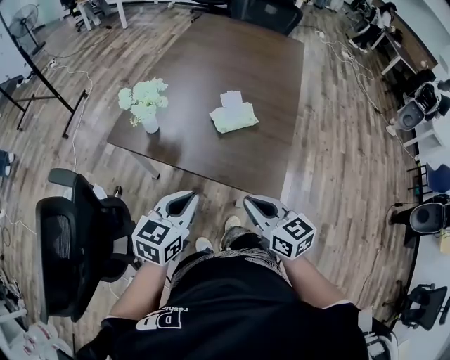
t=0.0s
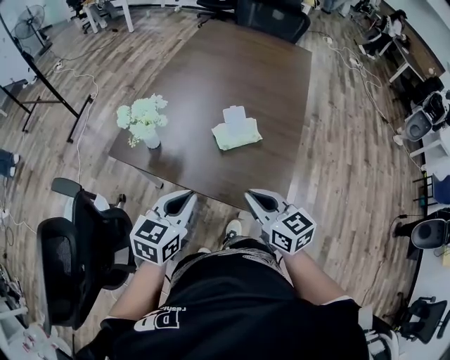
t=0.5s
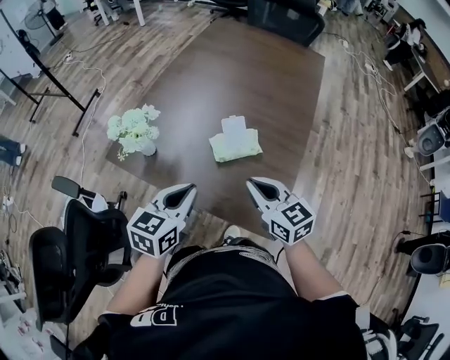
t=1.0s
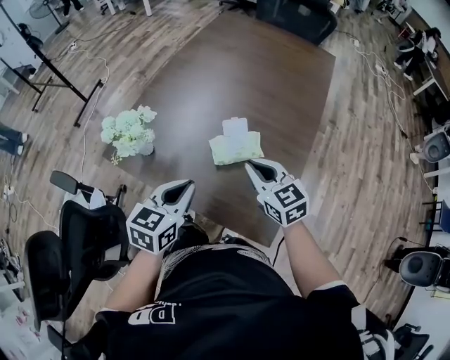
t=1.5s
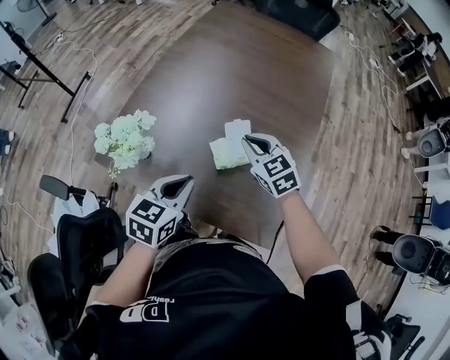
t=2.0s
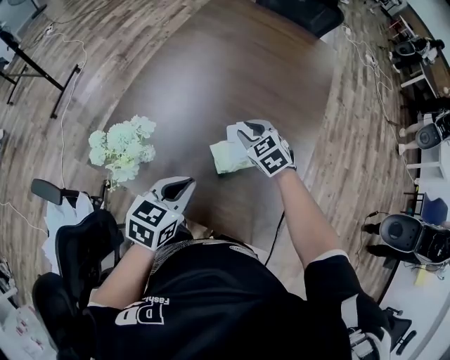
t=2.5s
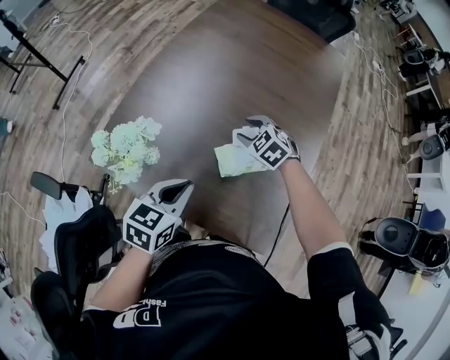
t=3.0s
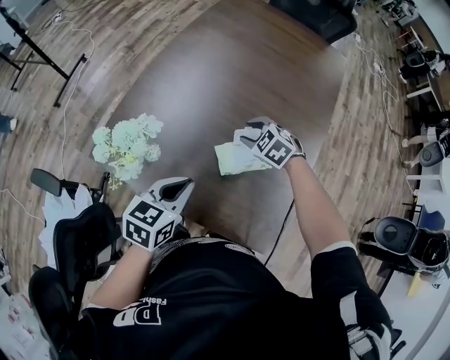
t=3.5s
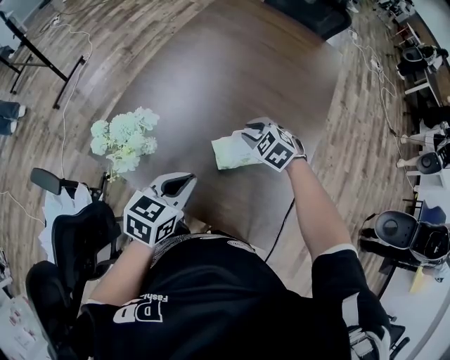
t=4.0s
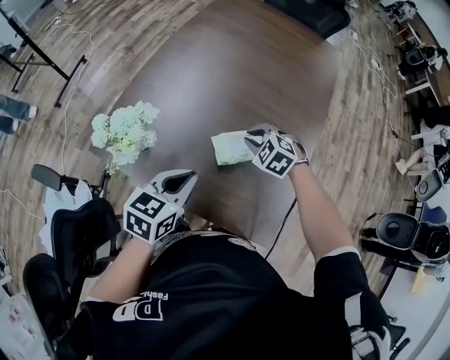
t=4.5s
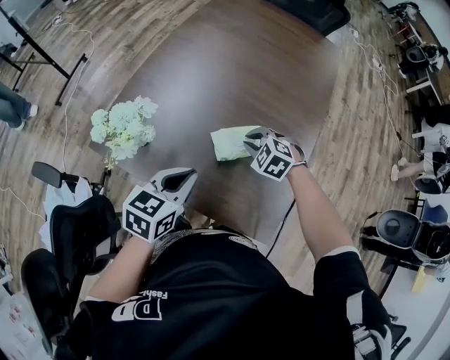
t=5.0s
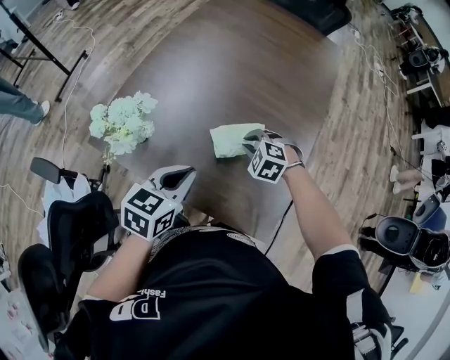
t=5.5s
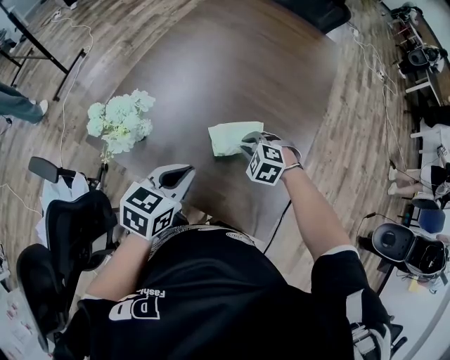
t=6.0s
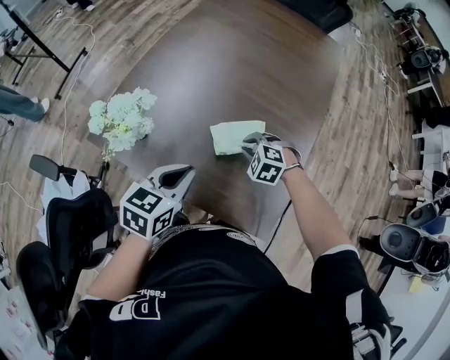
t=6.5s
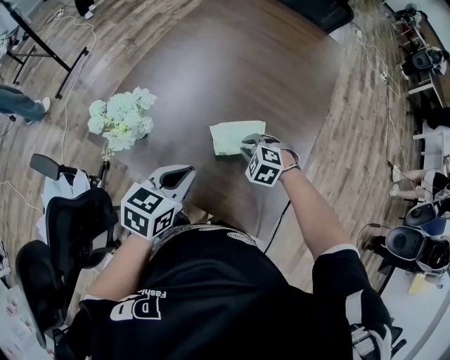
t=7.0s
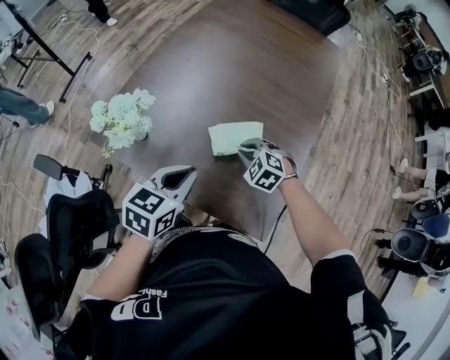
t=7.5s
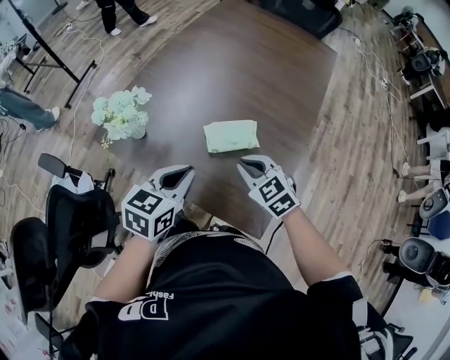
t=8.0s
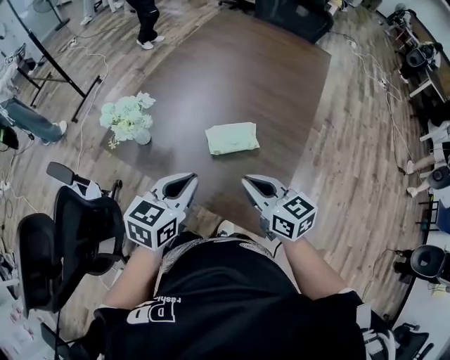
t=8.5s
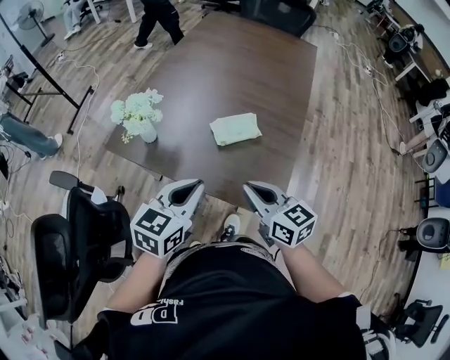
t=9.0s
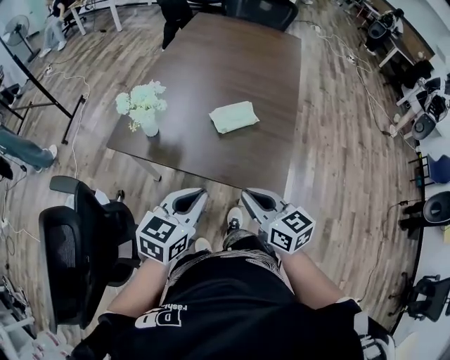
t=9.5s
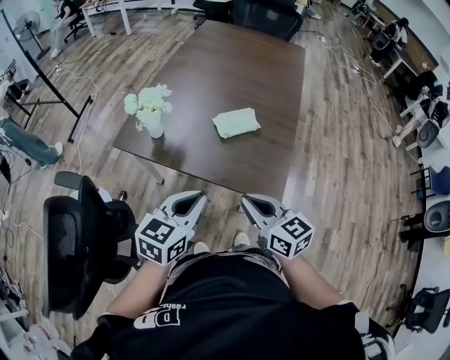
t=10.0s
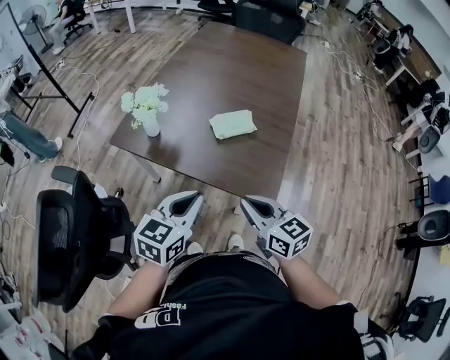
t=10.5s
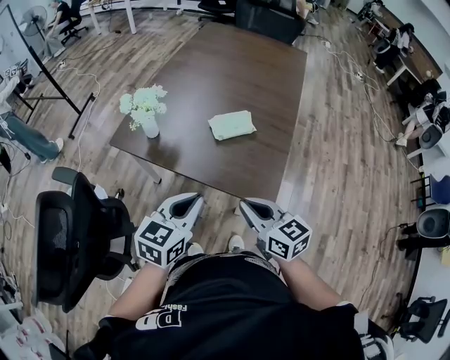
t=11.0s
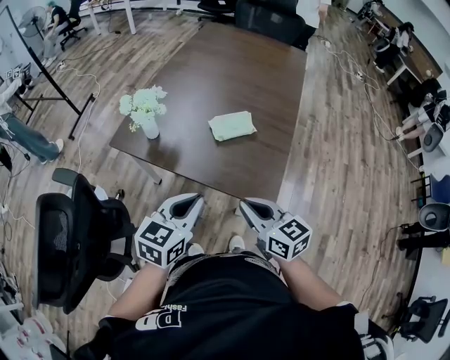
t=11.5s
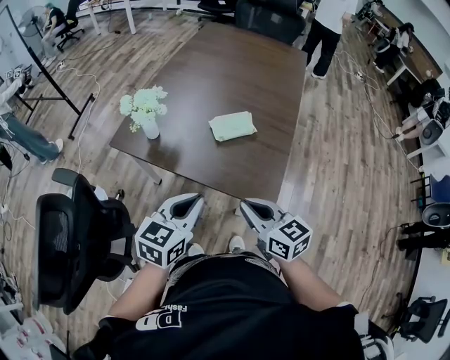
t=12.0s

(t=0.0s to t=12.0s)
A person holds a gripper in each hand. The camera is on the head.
t=0.0s - t=2.0s: The left gripper shifts roughly 25 cm forward; the right gripper is displaced forward by about 35 cm, and rotates about 30 degrees.
t=2.0s - t=4.0s: The right gripper moves downward and forward, some 10 cm, rotates approximately 30 degrees, and opens its fingers.
t=4.0s - t=6.0s: The right gripper is displaced backward by about 10 cm.
t=6.0s - t=8.0s: The right gripper shifts about 15 cm upward and backward, and changes its angle by approximately 40 degrees; the left gripper ends up about 5 cm from where it was.
t=8.0s - t=10.0s: Both grippers travel together backward, some 20 cm. The right gripper turns by about 40 degrees.
t=10.0s - t=12.0s: The grippers move only a little.

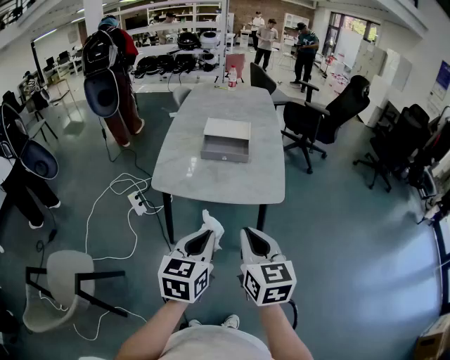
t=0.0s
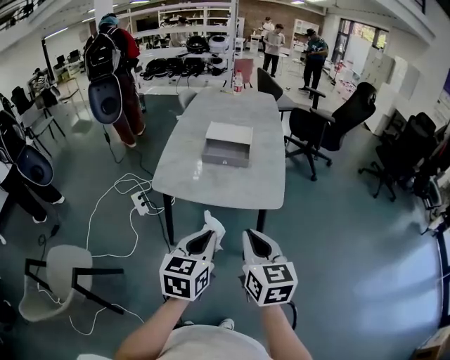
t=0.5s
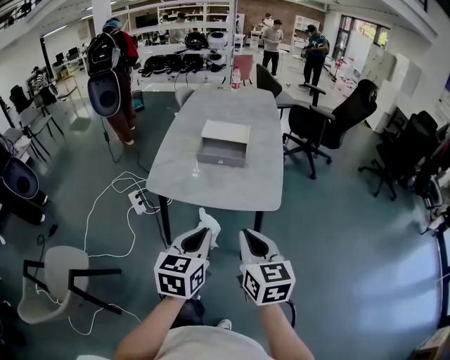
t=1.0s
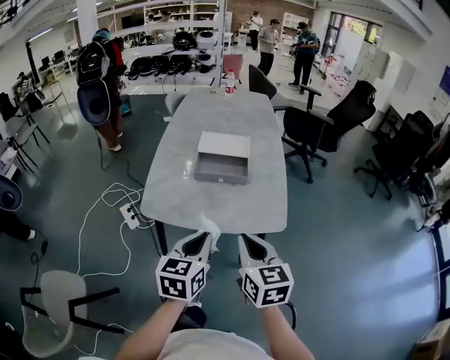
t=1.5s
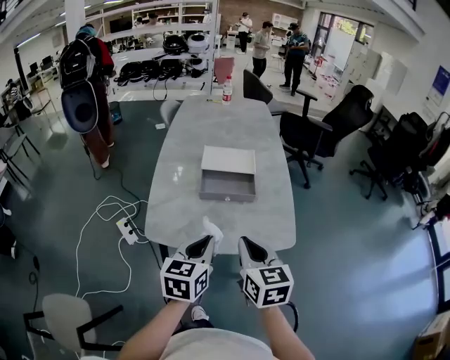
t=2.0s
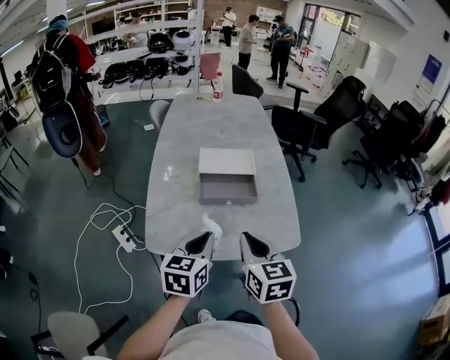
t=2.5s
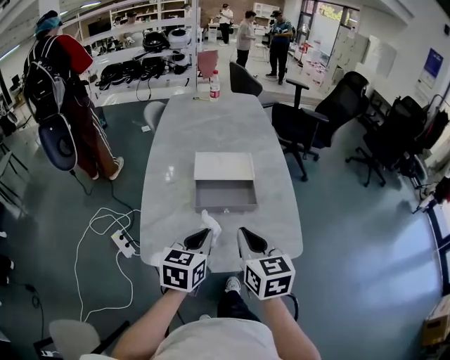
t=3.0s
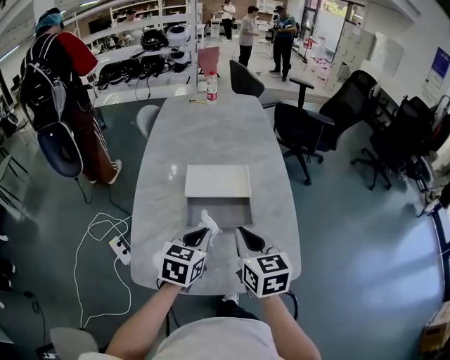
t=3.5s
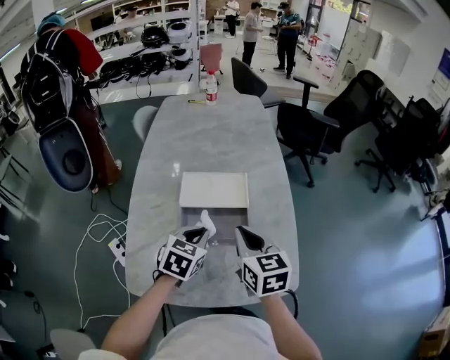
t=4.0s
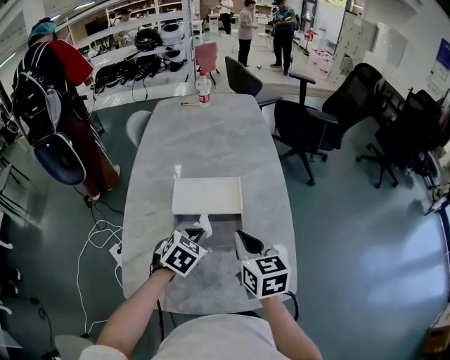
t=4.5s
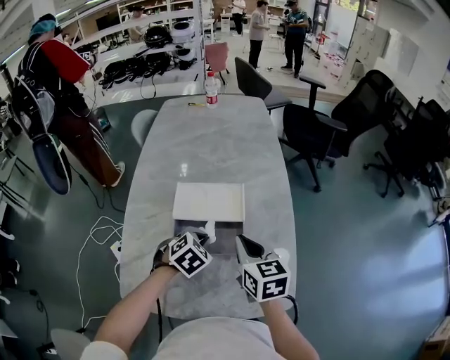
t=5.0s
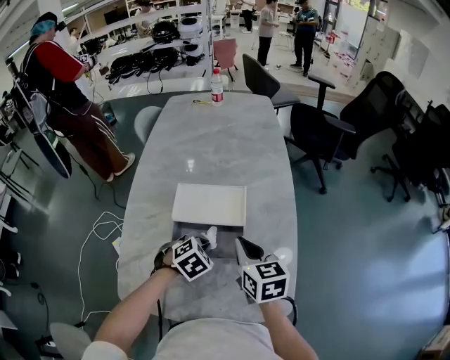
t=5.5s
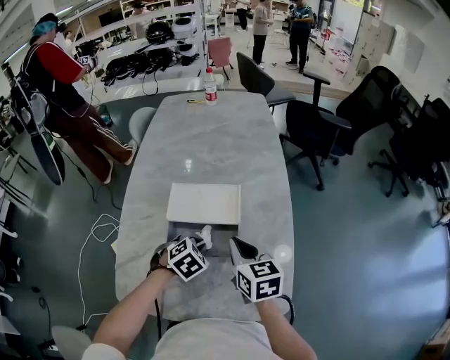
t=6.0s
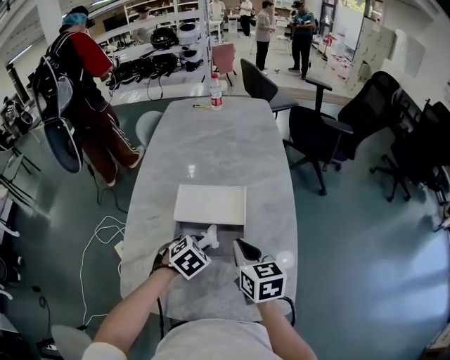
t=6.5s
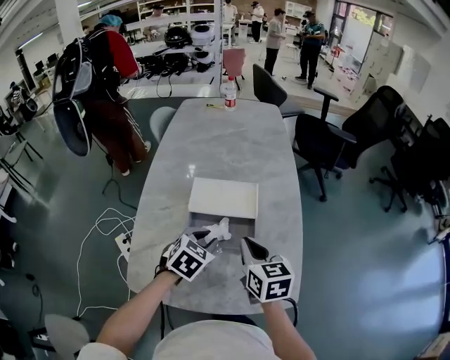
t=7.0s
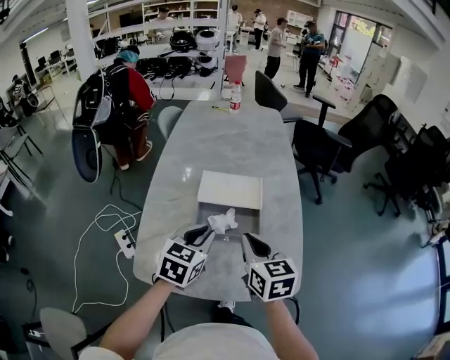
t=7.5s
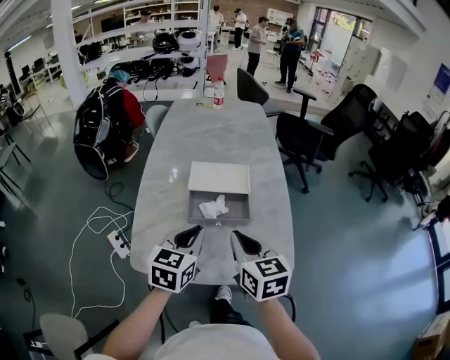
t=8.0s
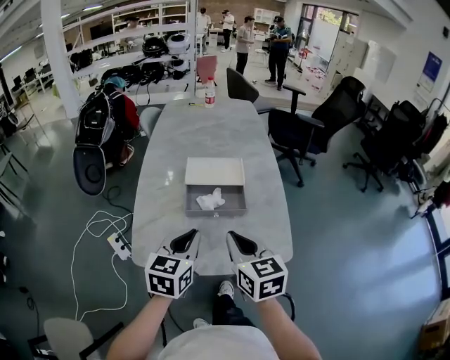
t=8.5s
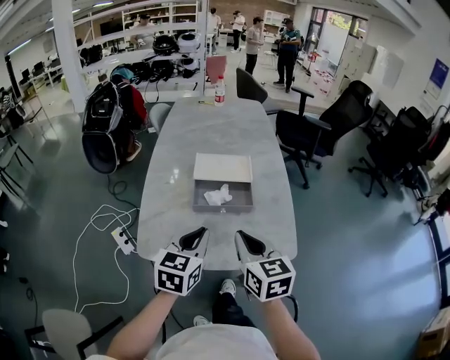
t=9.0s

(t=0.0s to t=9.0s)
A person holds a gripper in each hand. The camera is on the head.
t=0.0s - t=2.0s: Both grippers move forward, approximately 20 cm.
t=2.0s - t=4.5s: The two grippers go about 30 cm forward. The left gripper swivels approximately 40 degrees.
t=4.5s - t=7.0s: The left gripper goes downward and returns, some 5 cm each way.
t=7.0s - t=9.0s: The left gripper heads backward and upward, covering about 20 cm, and changes its angle by roughly 30 degrees. The right gripper is displaced backward by roughly 20 cm.

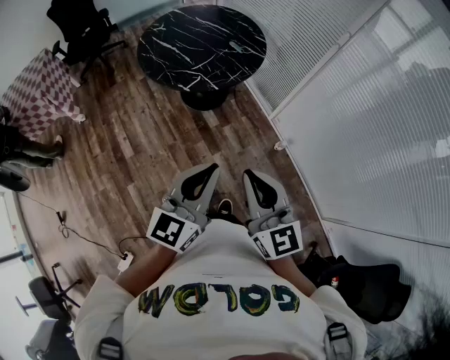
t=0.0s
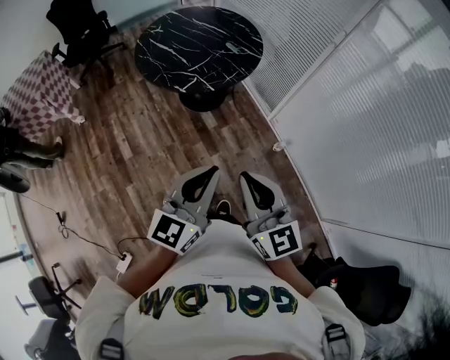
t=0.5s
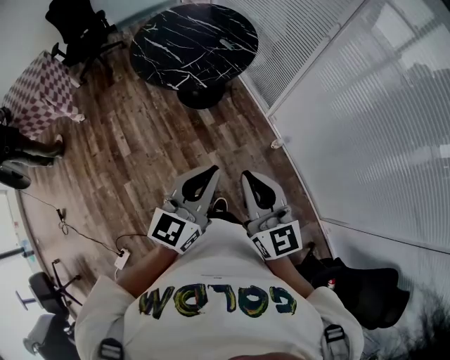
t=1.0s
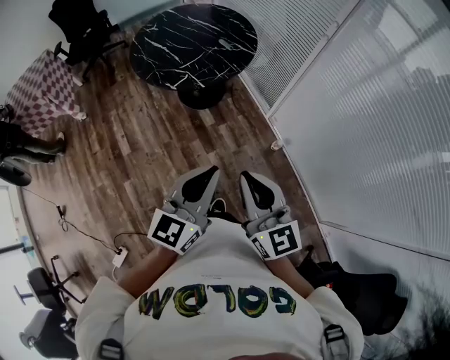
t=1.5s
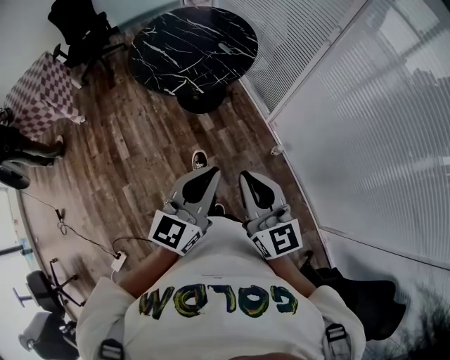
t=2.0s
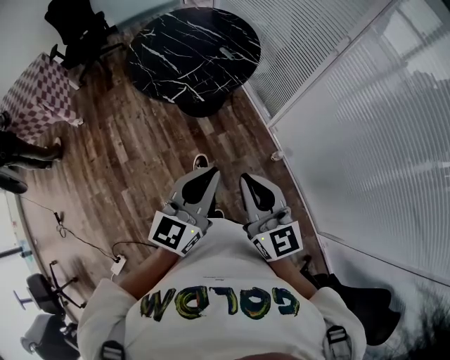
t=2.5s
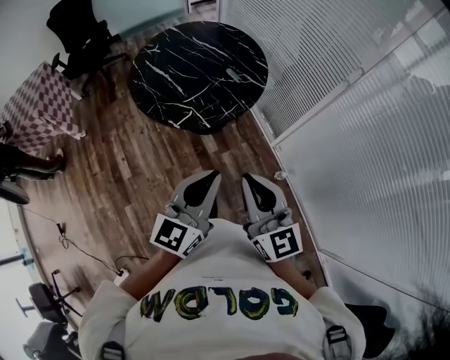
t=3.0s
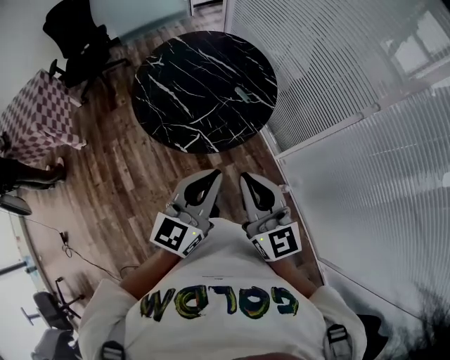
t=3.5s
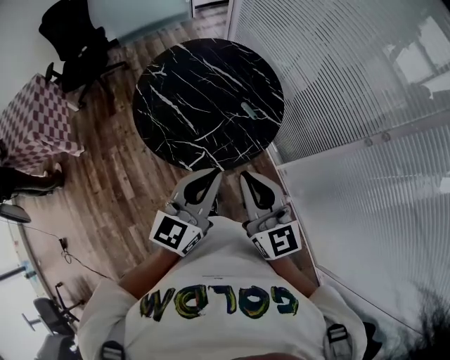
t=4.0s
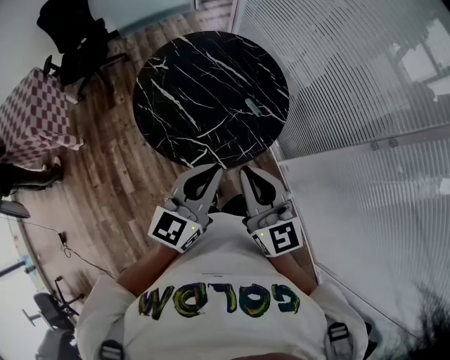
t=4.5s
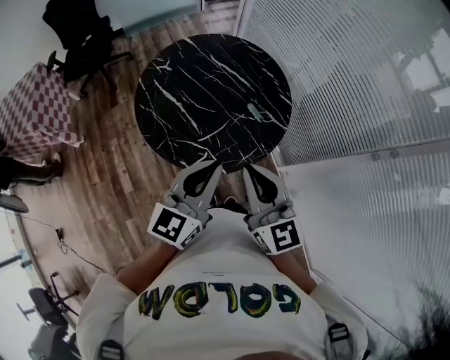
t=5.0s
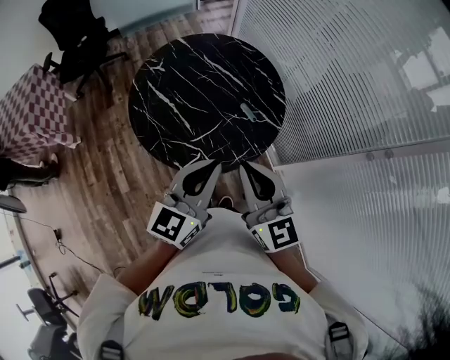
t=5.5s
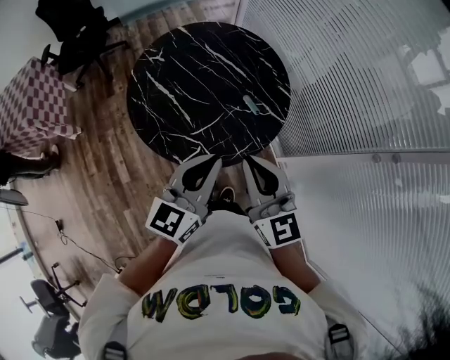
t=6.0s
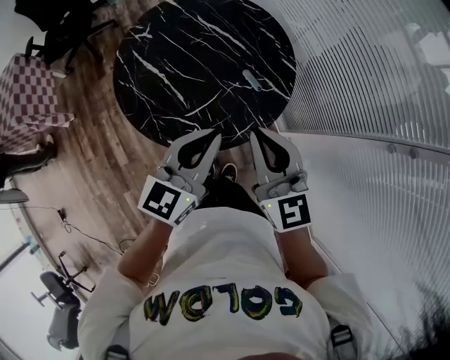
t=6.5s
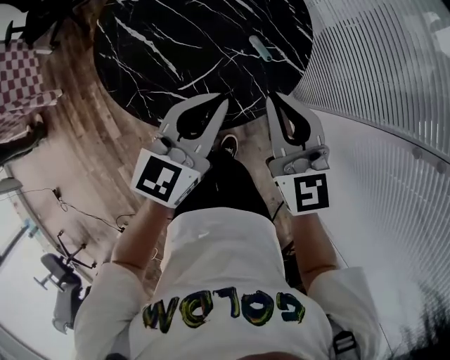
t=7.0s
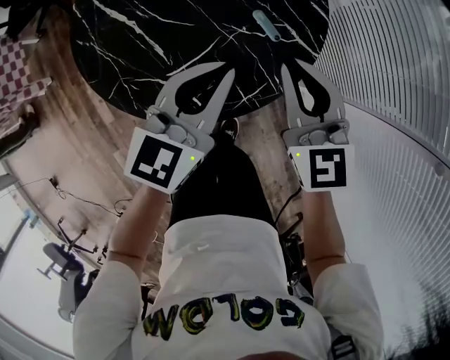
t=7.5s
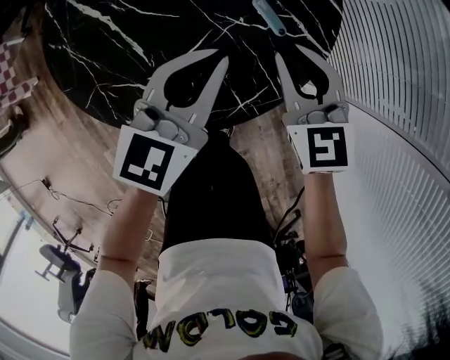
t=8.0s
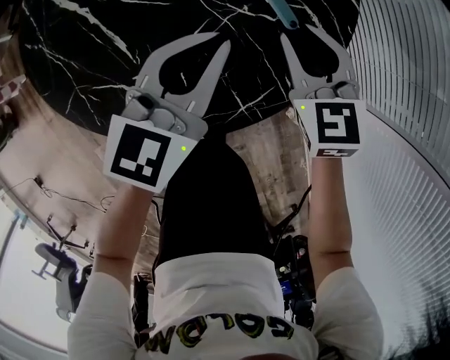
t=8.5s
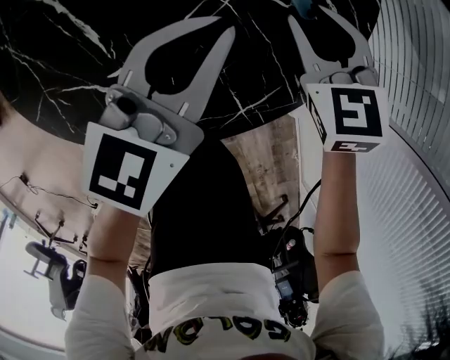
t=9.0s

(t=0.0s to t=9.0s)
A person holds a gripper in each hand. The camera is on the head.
t=0.0s - t=2.0s: Both grippers move to the right, about 10 cm.
t=2.0s - t=4.5s: Both grippers are carried forward, approximately 40 cm.
t=4.5s - t=7.0s: The grippers both shift forward and downward by roughly 20 cm.
t=7.0s - t=9.0s: Both grippers move downward and forward, some 30 cm. The right gripper turns by some 30 degrees, and opens.
